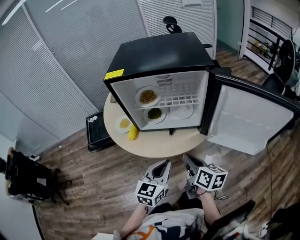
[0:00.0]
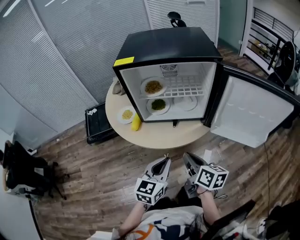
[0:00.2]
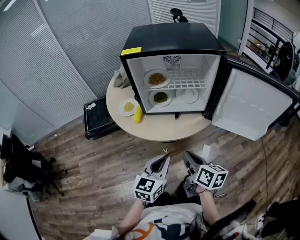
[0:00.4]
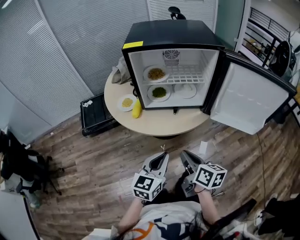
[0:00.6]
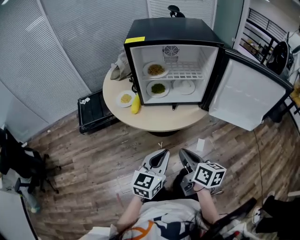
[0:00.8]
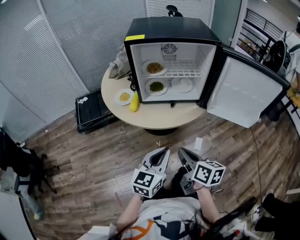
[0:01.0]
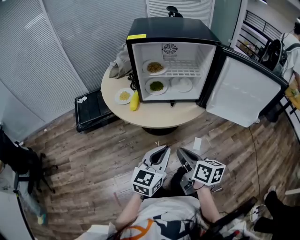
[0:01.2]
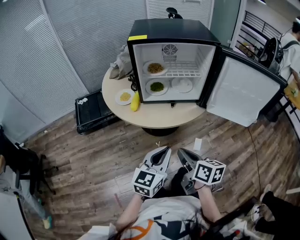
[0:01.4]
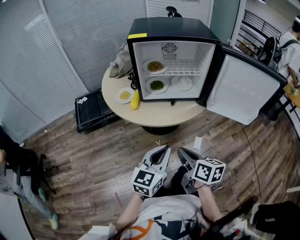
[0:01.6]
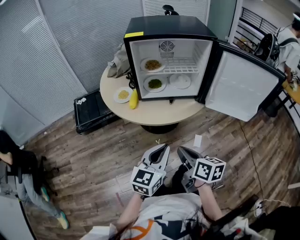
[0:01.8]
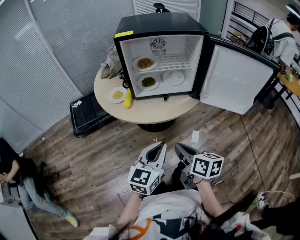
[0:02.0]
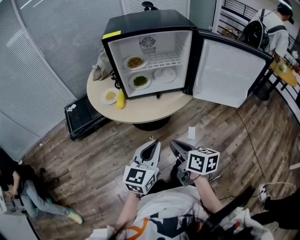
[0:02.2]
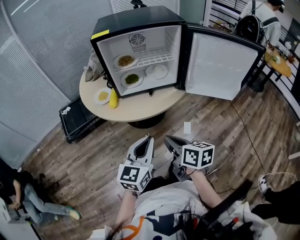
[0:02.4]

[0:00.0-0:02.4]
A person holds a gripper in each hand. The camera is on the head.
0:00.0 to 0:01.2: The grippers both shift backward and to the left by some 15 cm.
0:01.2 to 0:02.4: The grippers stay close to where they were, moving slightly.

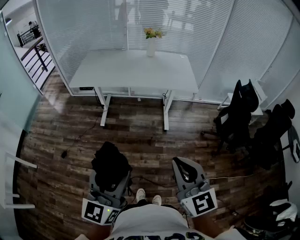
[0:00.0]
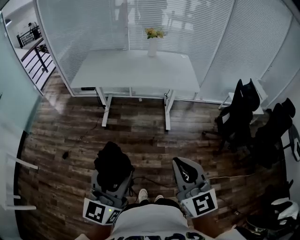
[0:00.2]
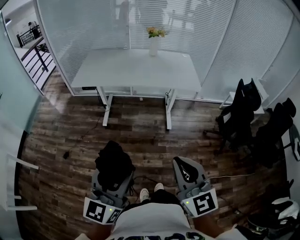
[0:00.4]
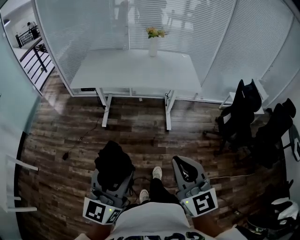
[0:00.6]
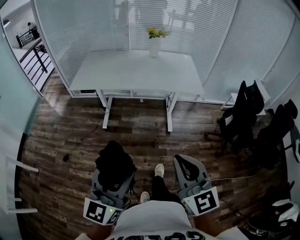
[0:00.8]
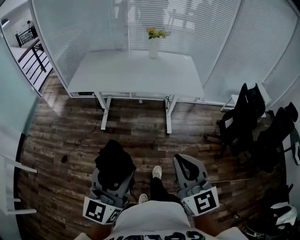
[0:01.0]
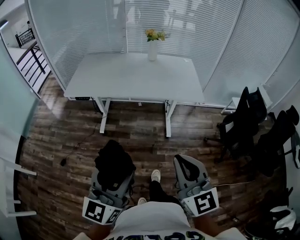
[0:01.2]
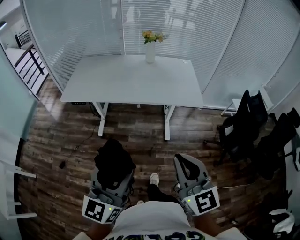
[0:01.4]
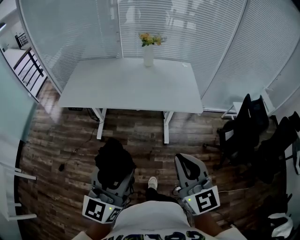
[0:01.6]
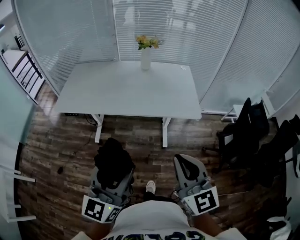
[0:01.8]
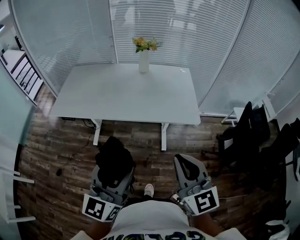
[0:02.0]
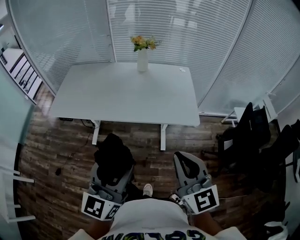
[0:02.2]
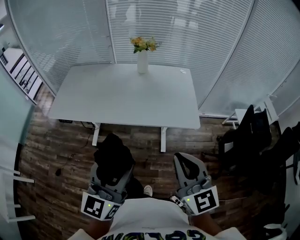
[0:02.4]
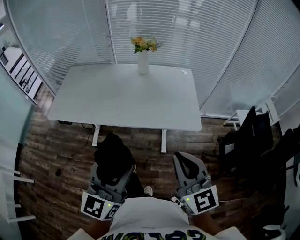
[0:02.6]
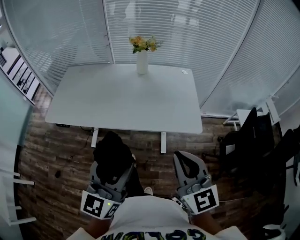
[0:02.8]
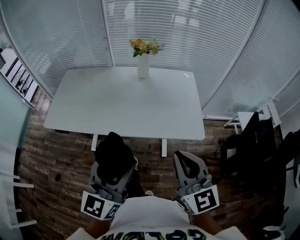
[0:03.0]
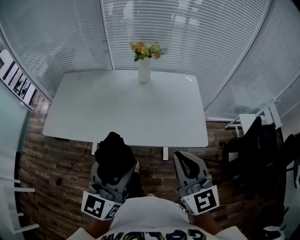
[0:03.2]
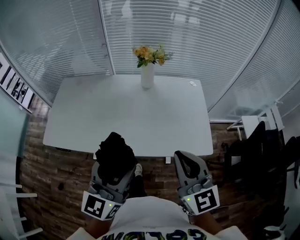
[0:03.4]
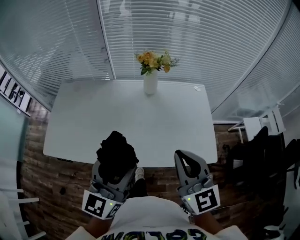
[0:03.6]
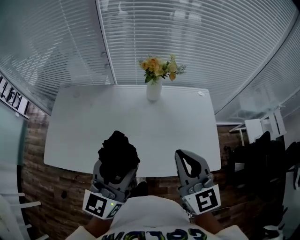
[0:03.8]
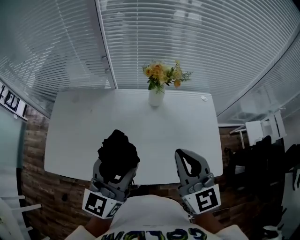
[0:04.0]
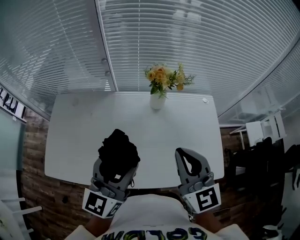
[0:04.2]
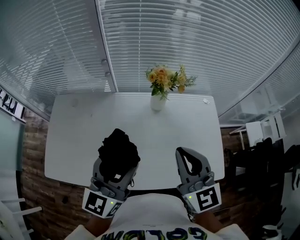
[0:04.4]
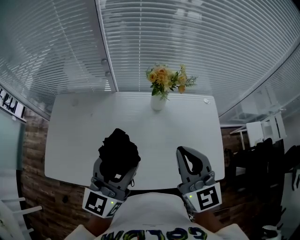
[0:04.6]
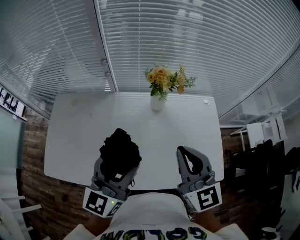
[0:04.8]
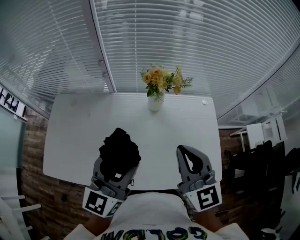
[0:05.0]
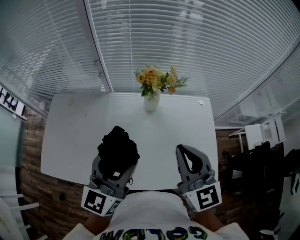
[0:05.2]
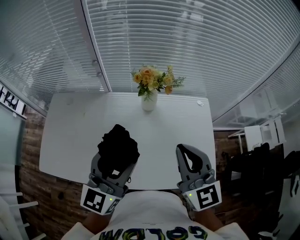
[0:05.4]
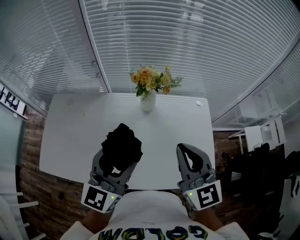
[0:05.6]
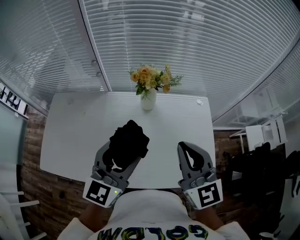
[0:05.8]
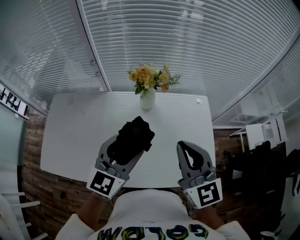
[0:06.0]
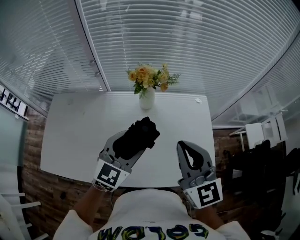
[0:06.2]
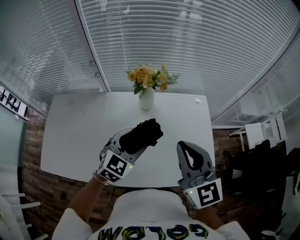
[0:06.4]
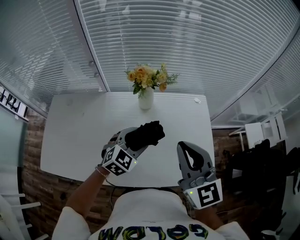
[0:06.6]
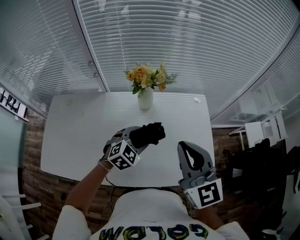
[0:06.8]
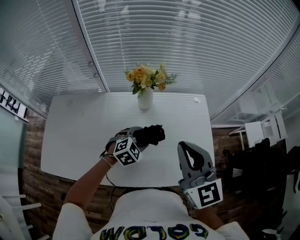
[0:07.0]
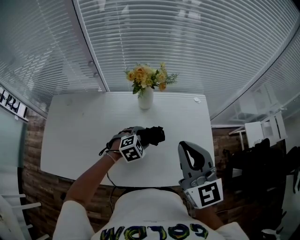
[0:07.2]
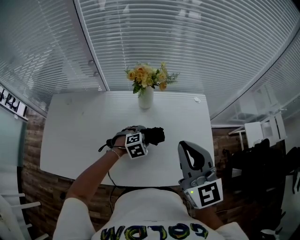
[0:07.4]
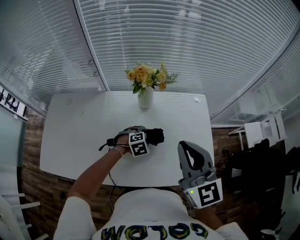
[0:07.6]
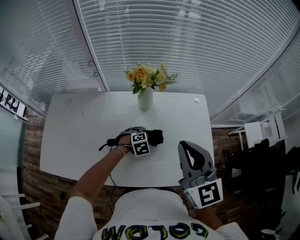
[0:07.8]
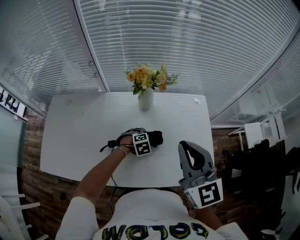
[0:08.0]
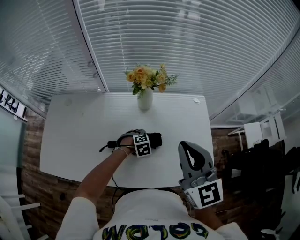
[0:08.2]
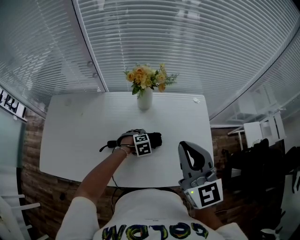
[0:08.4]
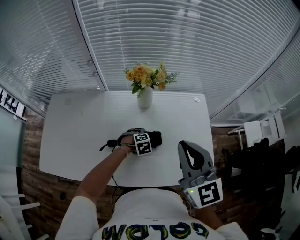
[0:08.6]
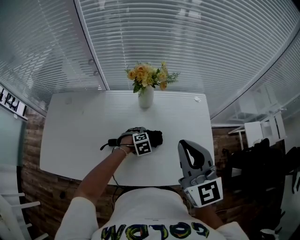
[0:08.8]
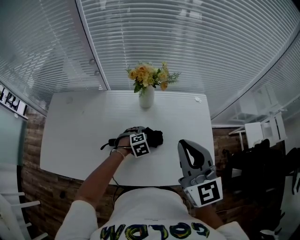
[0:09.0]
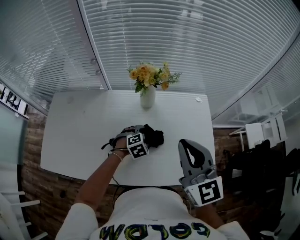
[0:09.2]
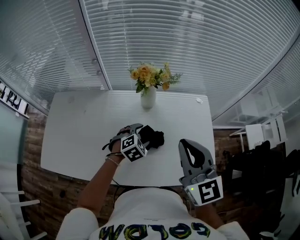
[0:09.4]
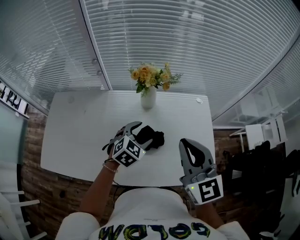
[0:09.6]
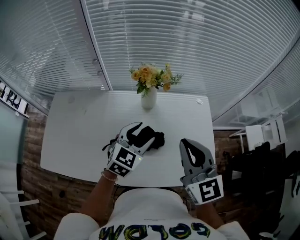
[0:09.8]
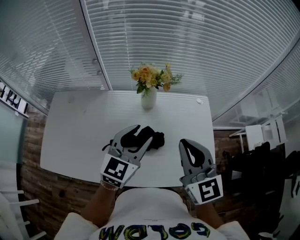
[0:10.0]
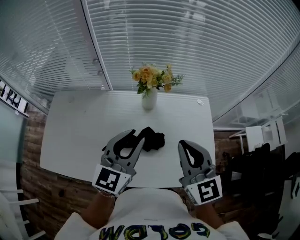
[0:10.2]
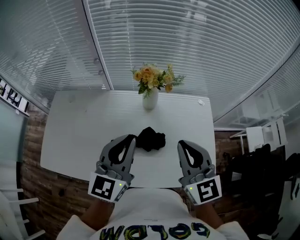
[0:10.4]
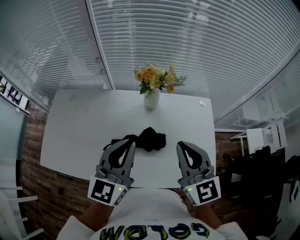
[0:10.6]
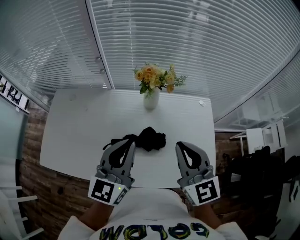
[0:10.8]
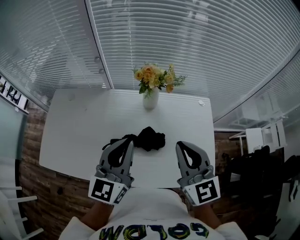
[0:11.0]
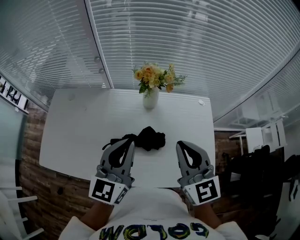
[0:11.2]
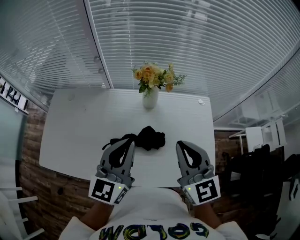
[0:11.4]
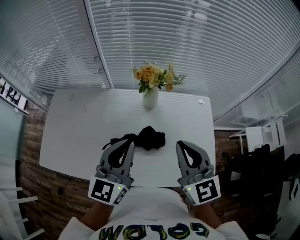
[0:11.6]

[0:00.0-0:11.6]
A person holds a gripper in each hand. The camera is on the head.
0:00.0 to 0:01.4: Both grippers travel together forward, roughly 20 cm.
0:01.4 to 0:02.8: Both grippers travel together forward and to the right, roughly 25 cm.
0:02.8 to 0:04.4: Both grippers are carried forward, about 40 cm.
0:04.4 to 0:05.8: The two grippers go about 10 cm to the right.
0:05.8 to 0:07.2: The left gripper heads downward, covering roughly 25 cm, and tips its fingers downward by roughly 50 degrees.
0:07.2 to 0:08.8: The left gripper goes roughly 10 cm downward.
0:08.8 to 0:10.2: The left gripper heads upward, covering about 35 cm, tips its fingers upward by some 70 degrees, and closes its fingers.
0:10.2 to 0:11.6: The grippers move only a little.

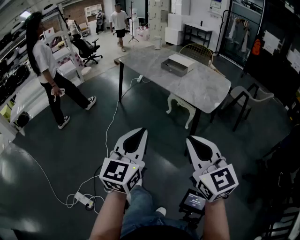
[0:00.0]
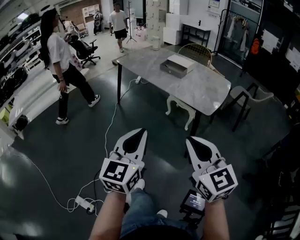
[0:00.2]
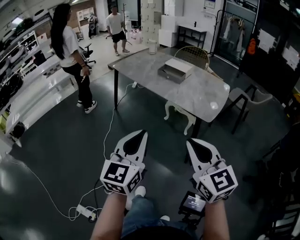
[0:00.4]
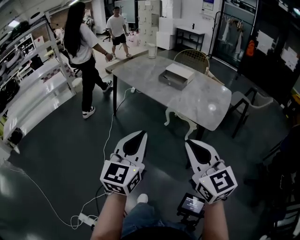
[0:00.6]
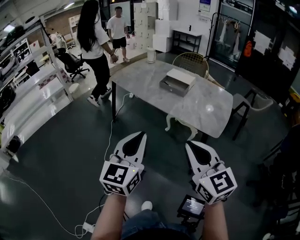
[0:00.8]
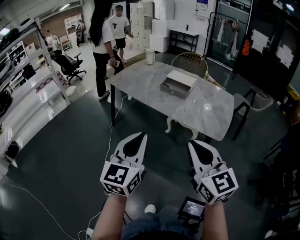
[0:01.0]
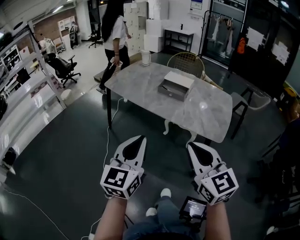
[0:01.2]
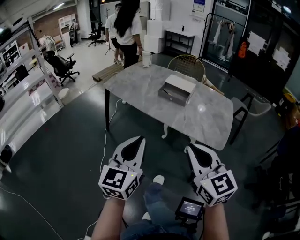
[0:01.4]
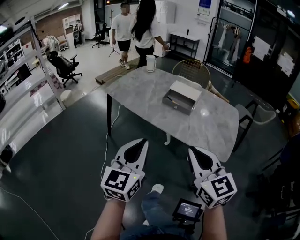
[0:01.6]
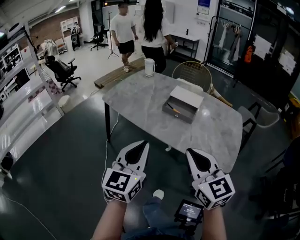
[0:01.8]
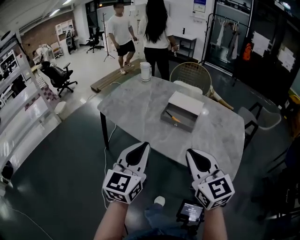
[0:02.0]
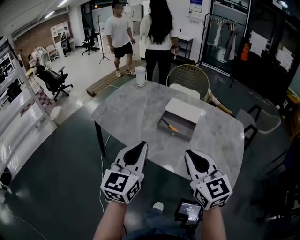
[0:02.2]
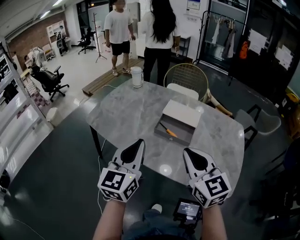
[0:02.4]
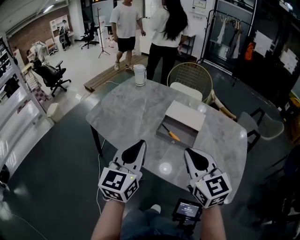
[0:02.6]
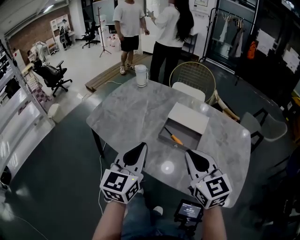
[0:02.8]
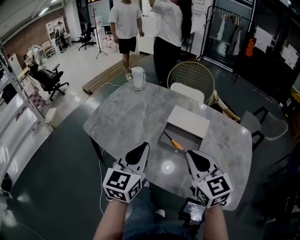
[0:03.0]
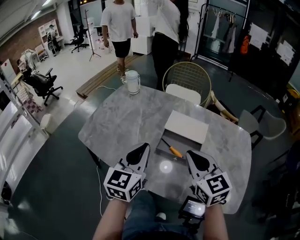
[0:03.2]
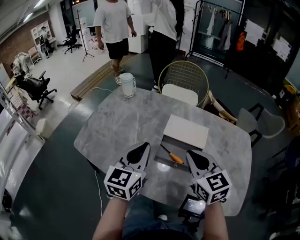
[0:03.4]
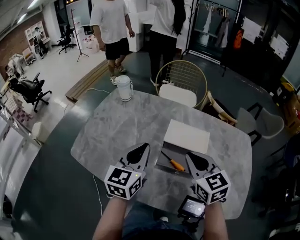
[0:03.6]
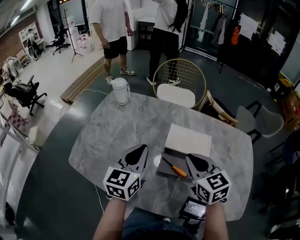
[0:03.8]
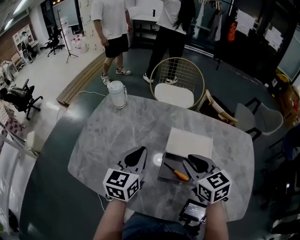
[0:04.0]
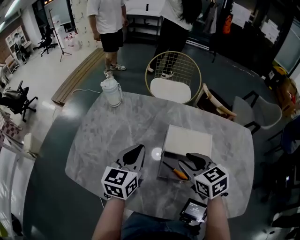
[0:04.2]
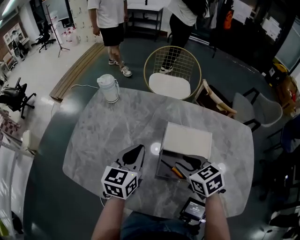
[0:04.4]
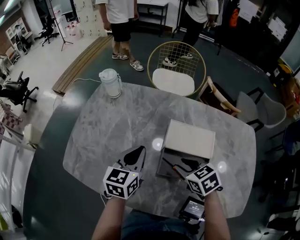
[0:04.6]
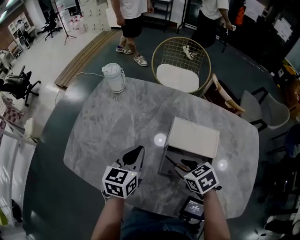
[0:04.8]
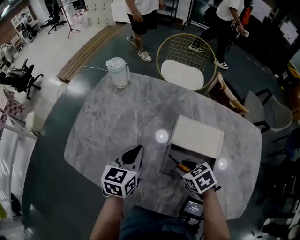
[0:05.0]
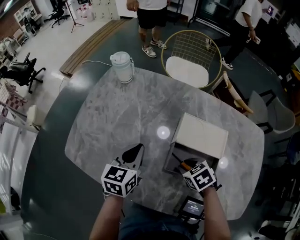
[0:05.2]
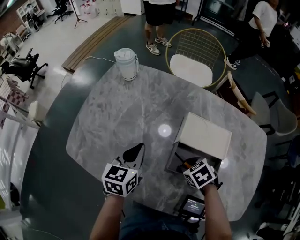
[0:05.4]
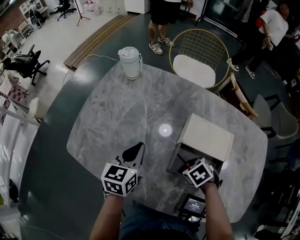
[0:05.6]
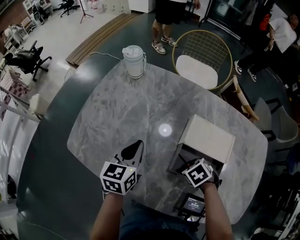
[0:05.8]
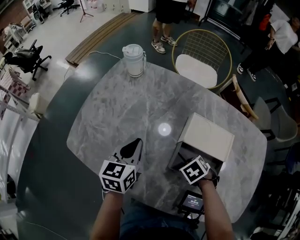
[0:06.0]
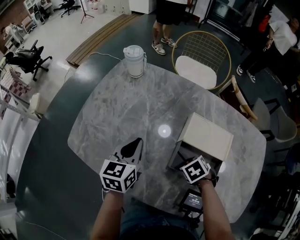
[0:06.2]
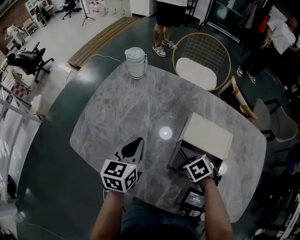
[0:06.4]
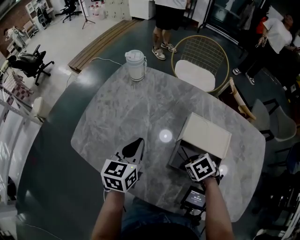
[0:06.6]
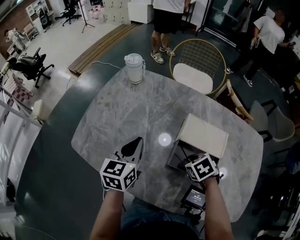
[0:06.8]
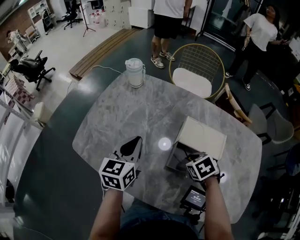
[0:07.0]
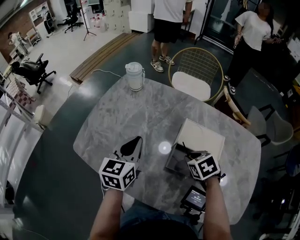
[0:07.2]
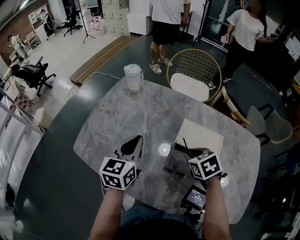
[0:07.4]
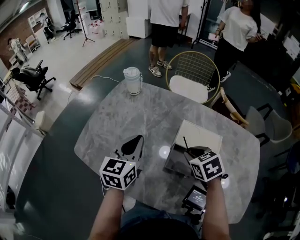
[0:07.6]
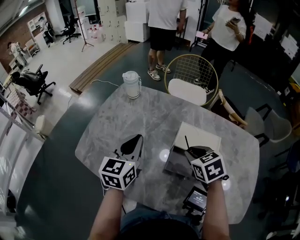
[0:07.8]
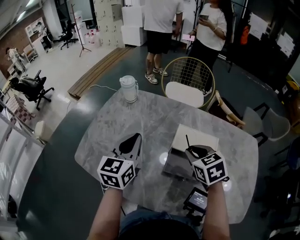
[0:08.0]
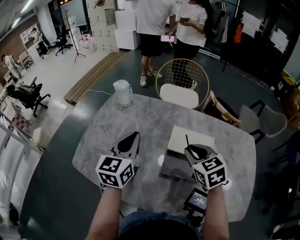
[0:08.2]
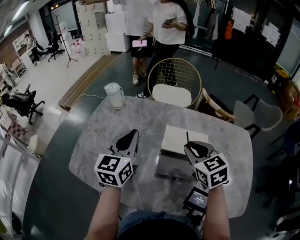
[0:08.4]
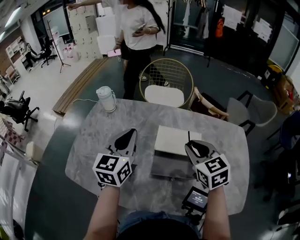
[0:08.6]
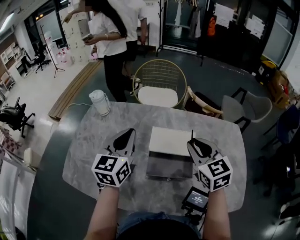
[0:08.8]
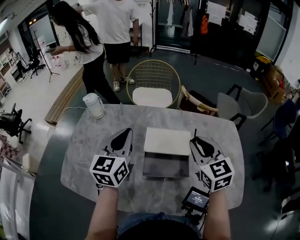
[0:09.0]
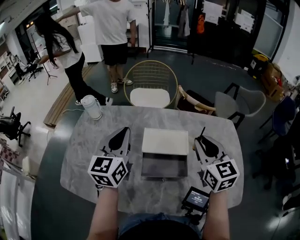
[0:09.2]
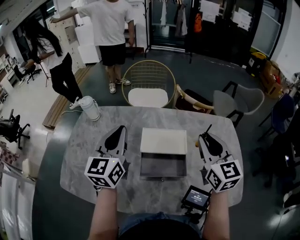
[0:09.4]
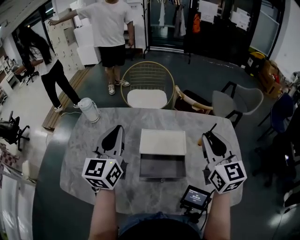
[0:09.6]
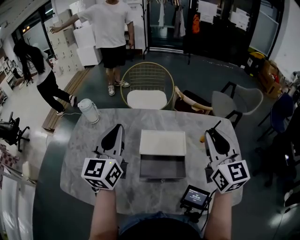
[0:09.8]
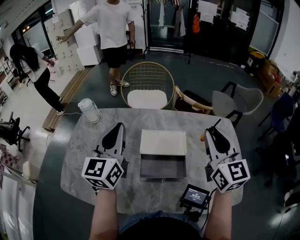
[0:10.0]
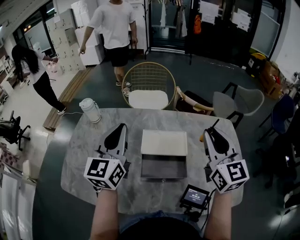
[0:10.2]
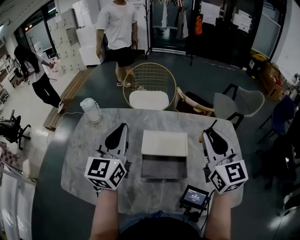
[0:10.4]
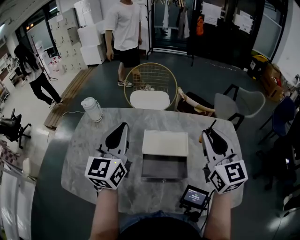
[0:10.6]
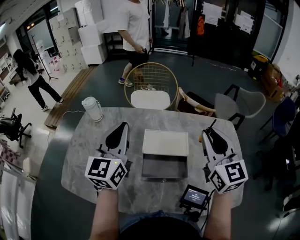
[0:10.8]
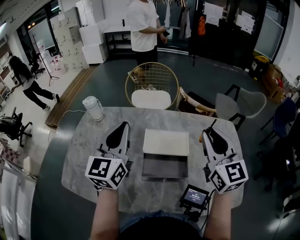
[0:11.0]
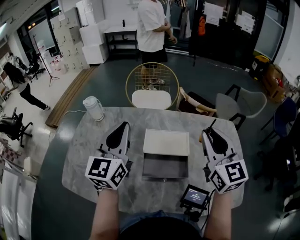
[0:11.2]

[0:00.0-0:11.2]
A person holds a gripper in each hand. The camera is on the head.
0:00.0 to 0:01.6: Both grippers travel together forward, about 35 cm.
0:01.6 to 0:03.2: The grippers both shift forward by about 40 cm.
0:03.2 to 0:04.8: The left gripper goes approximately 20 cm forward and downward, and turns by some 20 degrees. Meanwhile the right gripper moves downward and forward, about 20 cm, angles its fingers downward, by about 40 degrees, and opens up.
0:04.8 to 0:06.4: The right gripper shifts some 5 cm downward, and turns by roughly 30 degrees, while the left gripper moves some 5 cm.
0:06.4 to 0:08.0: The right gripper moves upward, roughly 15 cm, and points its fingers about 40 degrees further upward. Meanwhile the left gripper shifts about 10 cm upward.
0:08.0 to 0:09.6: The right gripper heads to the right and upward, covering some 25 cm, and points its fingers about 40 degrees further upward. Meanwhile the left gripper shifts roughly 10 cm to the right and upward.
0:09.6 to 0:11.2: There are only small adjustments of the grippers.
